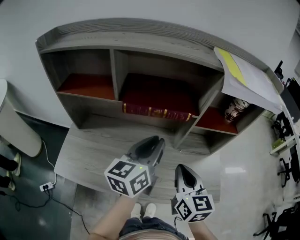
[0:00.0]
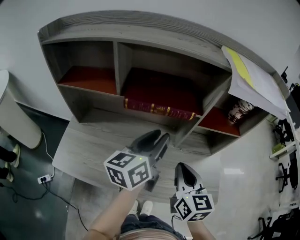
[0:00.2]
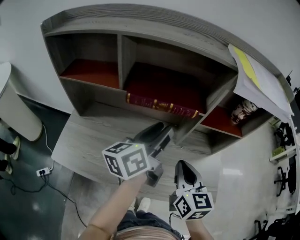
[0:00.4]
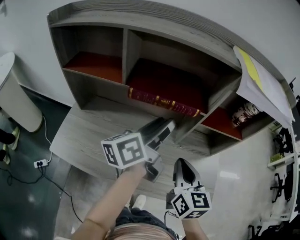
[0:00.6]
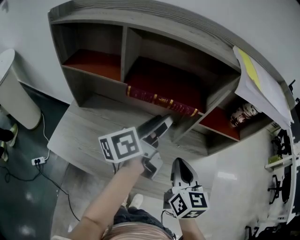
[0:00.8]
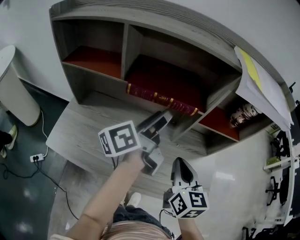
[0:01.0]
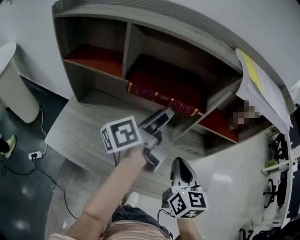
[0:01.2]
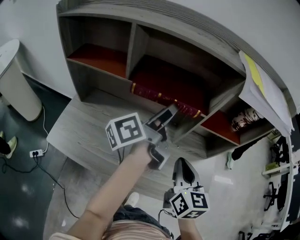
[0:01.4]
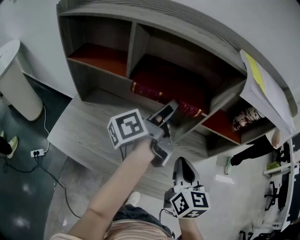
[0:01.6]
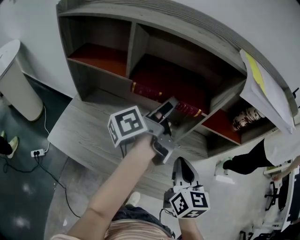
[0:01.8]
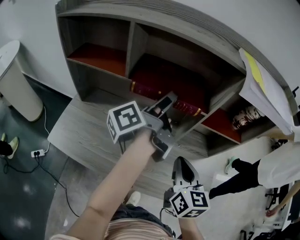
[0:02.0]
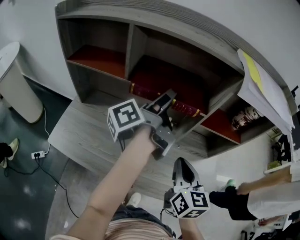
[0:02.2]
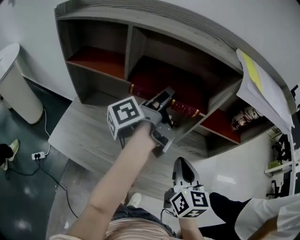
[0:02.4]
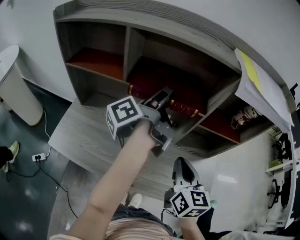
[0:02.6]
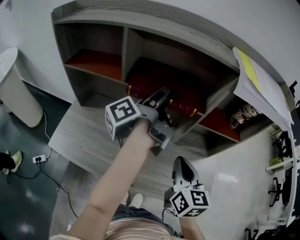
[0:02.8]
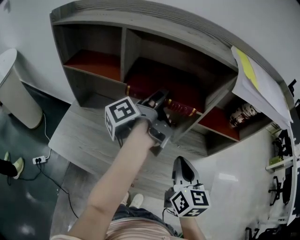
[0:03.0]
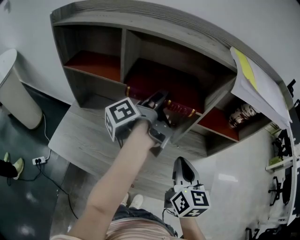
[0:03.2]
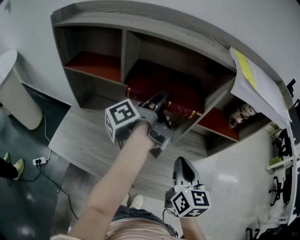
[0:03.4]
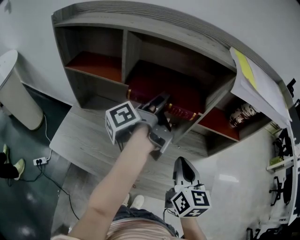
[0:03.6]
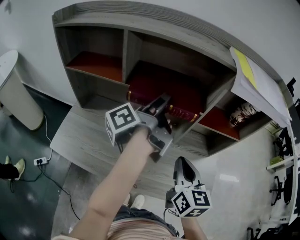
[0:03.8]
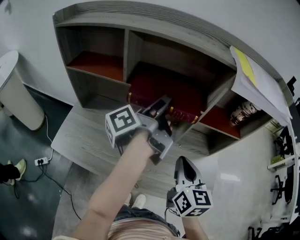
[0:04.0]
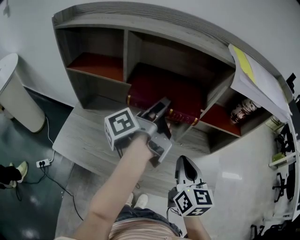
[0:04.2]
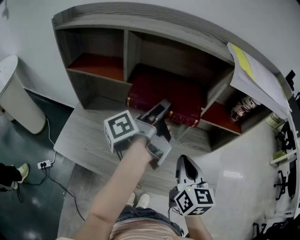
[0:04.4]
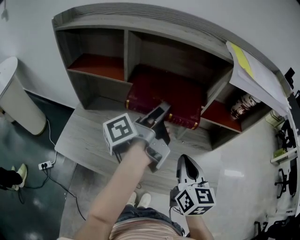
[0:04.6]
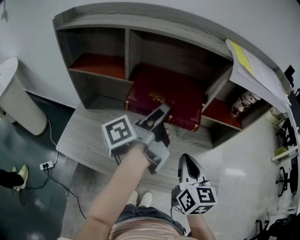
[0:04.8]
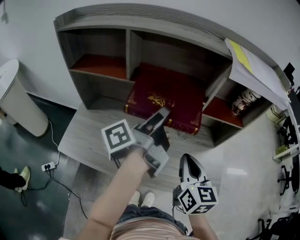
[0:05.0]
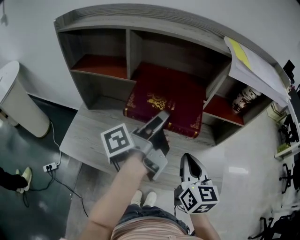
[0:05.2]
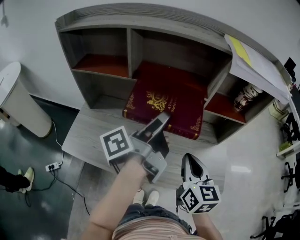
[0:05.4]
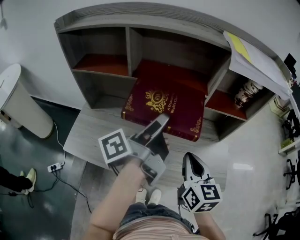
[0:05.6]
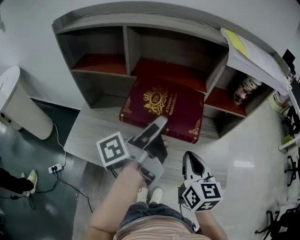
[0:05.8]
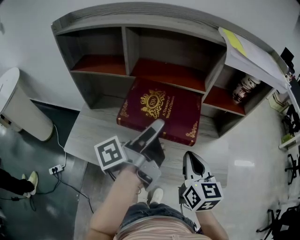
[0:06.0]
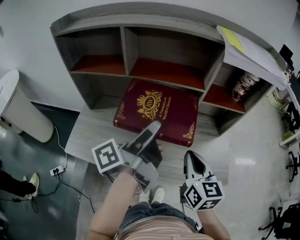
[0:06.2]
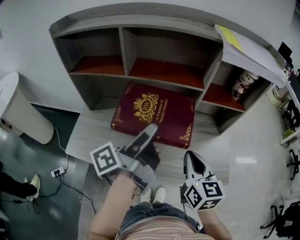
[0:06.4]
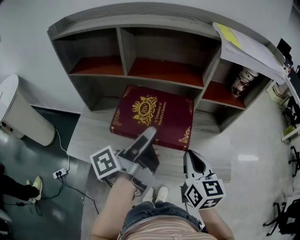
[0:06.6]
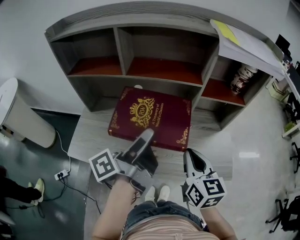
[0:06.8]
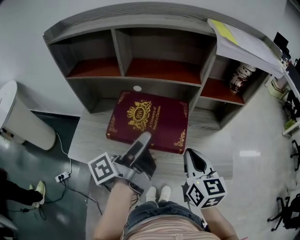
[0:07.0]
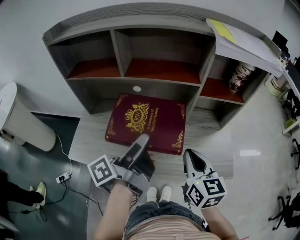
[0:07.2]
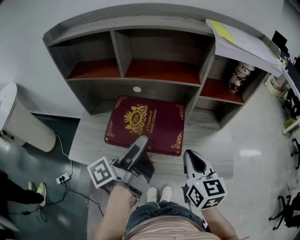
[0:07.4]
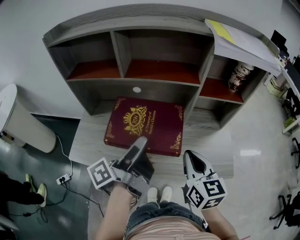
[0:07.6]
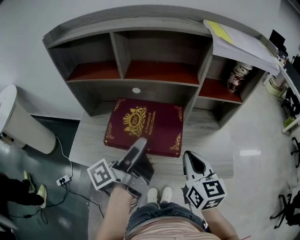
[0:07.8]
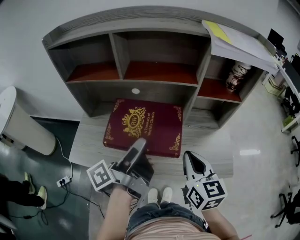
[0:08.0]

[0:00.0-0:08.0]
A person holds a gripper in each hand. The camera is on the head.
0:00.0 to 0:01.6: The left gripper heads forward, covering about 10 cm, rotates around the line of its fingers by some 50 degrees, counterclockwise from behind, and opens.
0:01.6 to 0:03.2: The grippers stay close to where they were, moving slightly.
0:03.2 to 0:04.8: The left gripper heads backward, covering approximately 10 cm.
0:04.8 to 0:06.4: The left gripper heads backward, covering about 10 cm.
0:06.4 to 0:08.0: The grippers move only a little.

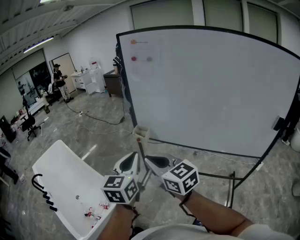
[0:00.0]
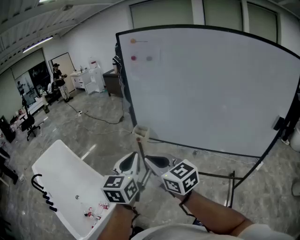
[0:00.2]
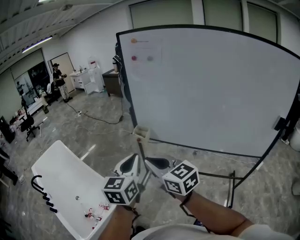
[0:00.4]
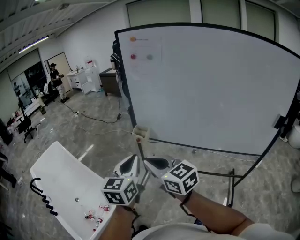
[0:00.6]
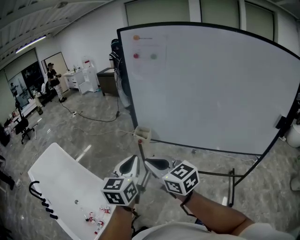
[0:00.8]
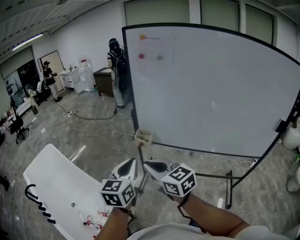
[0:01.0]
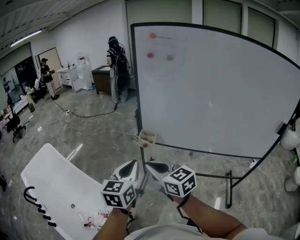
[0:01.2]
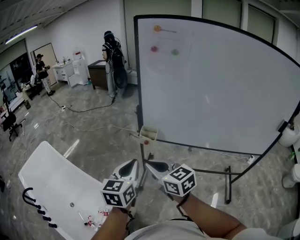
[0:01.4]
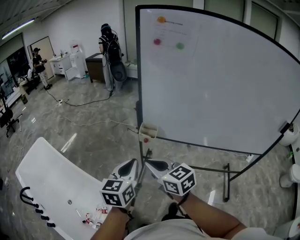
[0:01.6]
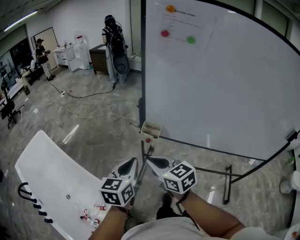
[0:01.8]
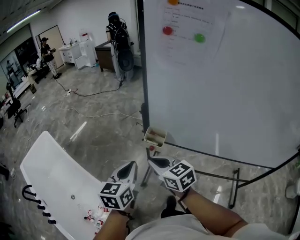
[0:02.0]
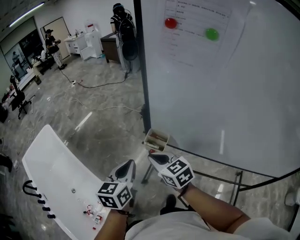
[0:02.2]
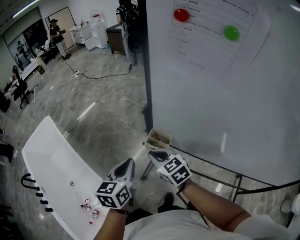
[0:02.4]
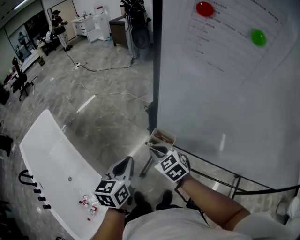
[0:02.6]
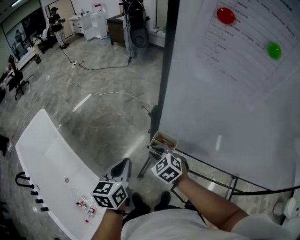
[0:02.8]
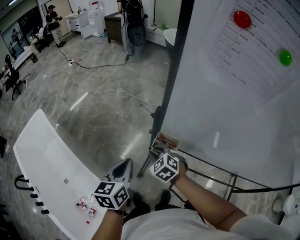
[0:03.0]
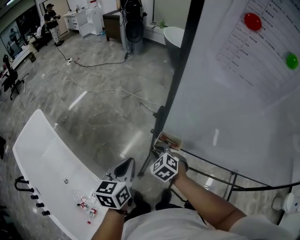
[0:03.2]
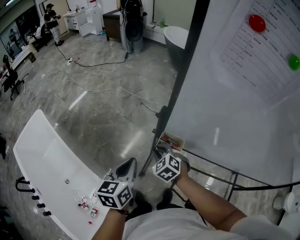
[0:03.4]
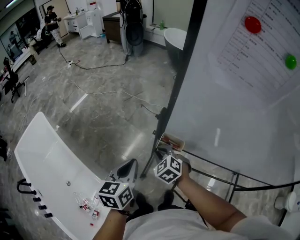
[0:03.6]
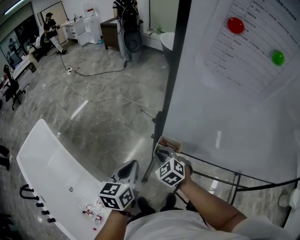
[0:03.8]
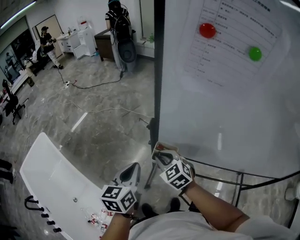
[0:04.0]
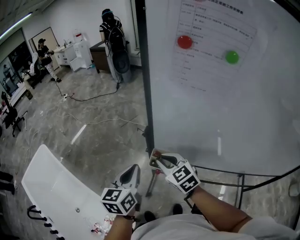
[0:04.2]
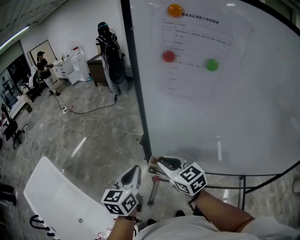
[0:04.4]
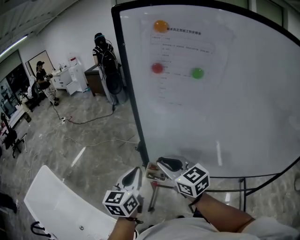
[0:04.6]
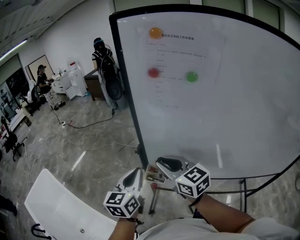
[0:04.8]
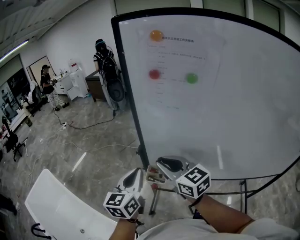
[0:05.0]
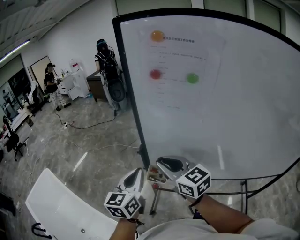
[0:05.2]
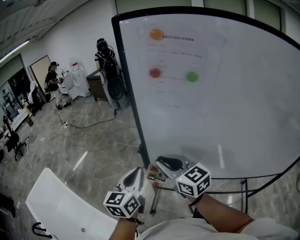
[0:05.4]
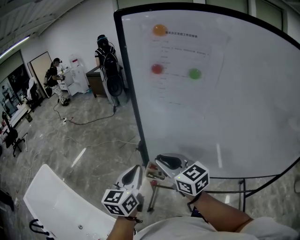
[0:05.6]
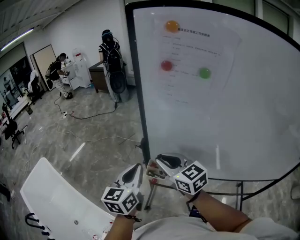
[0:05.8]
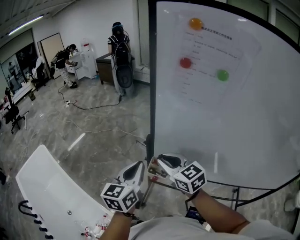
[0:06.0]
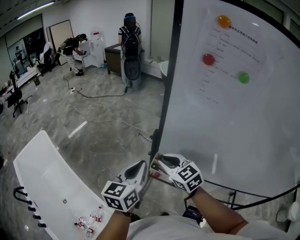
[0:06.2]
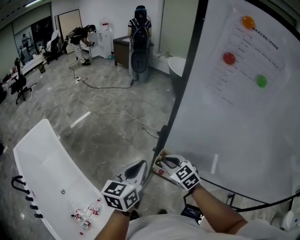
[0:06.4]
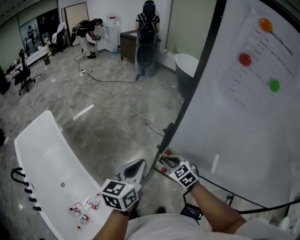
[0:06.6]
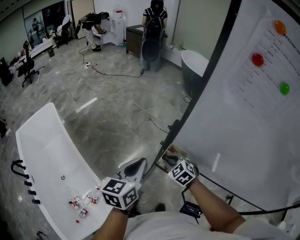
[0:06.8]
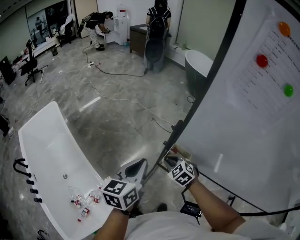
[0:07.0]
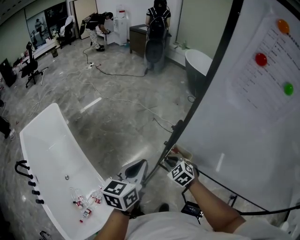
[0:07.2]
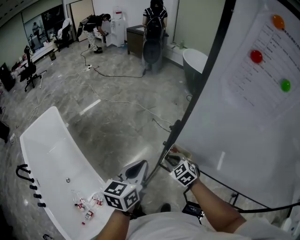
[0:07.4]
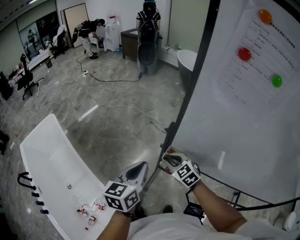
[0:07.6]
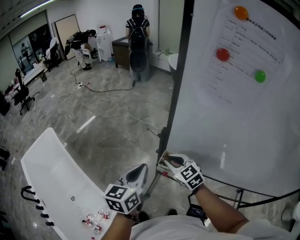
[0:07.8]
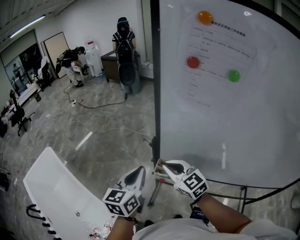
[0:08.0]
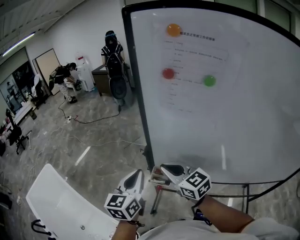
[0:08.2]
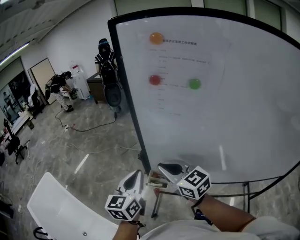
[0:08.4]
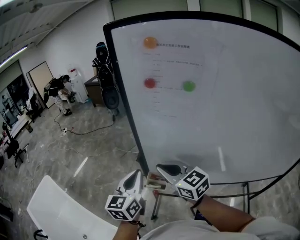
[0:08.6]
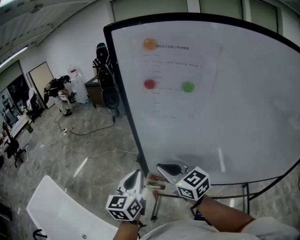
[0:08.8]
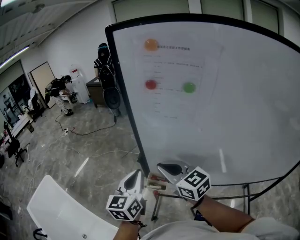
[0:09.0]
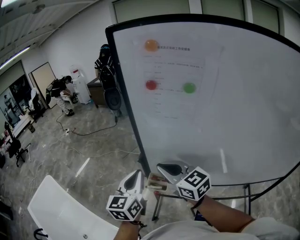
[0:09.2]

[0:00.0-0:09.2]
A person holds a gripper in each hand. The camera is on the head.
0:00.0 to 0:01.6: Both grippers move forward, to the left and downward, about 25 cm.
0:01.6 to 0:03.0: Both grippers move forward and downward, approximately 30 cm. The right gripper points its fingers some 30 degrees further downward.
0:03.0 to 0:04.6: The right gripper moves upward, roughly 25 cm, and tips its fingers upward by roughly 40 degrees, while the left gripper goes roughly 15 cm upward and to the right, and turns by approximately 20 degrees.
0:04.6 to 0:06.2: The right gripper goes approximately 10 cm downward, and rotates about 20 degrees.
0:06.2 to 0:07.6: The right gripper shifts roughly 15 cm downward. The left gripper changes place by approximately 5 cm.
0:07.6 to 0:09.2: The left gripper moves upward and to the right, some 15 cm, while the right gripper shifts approximately 25 cm upward, and points its fingers about 30 degrees further upward.

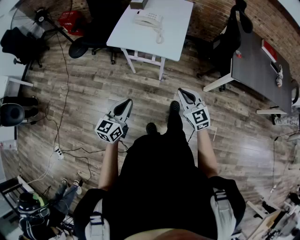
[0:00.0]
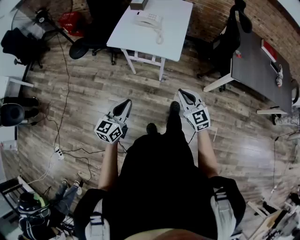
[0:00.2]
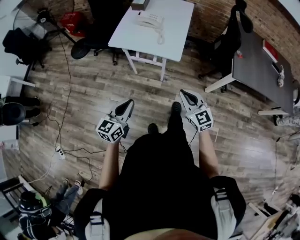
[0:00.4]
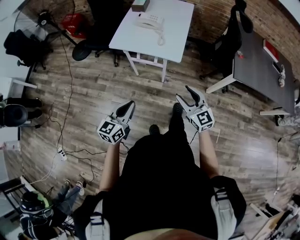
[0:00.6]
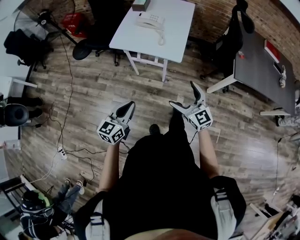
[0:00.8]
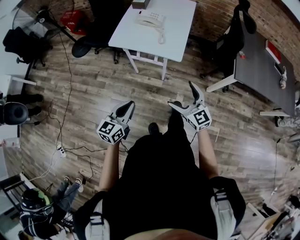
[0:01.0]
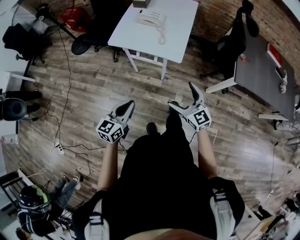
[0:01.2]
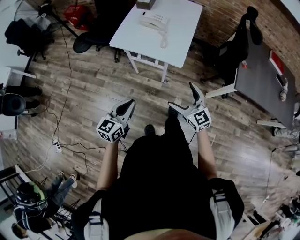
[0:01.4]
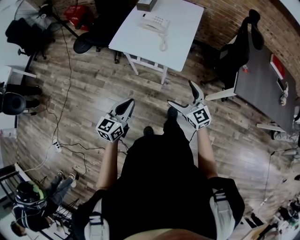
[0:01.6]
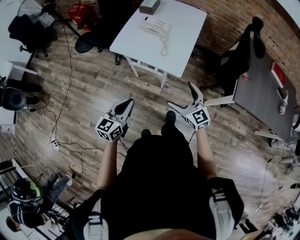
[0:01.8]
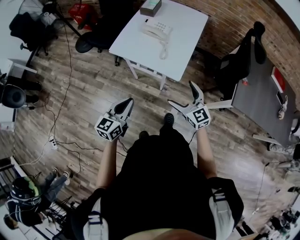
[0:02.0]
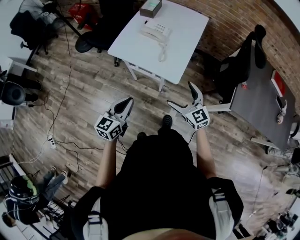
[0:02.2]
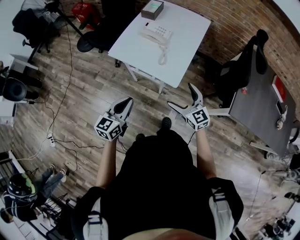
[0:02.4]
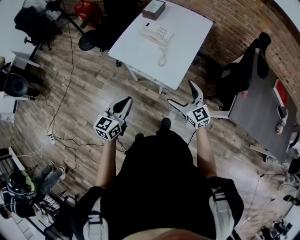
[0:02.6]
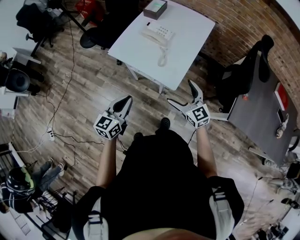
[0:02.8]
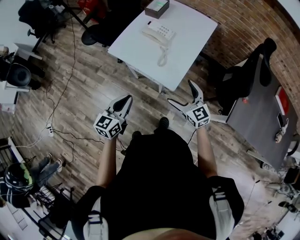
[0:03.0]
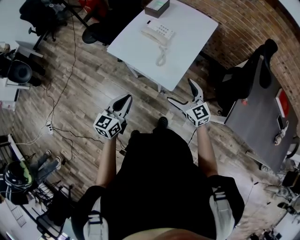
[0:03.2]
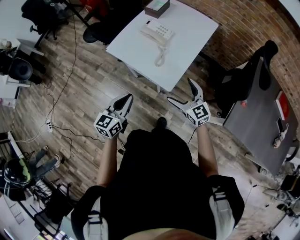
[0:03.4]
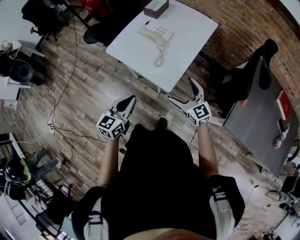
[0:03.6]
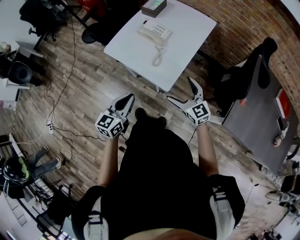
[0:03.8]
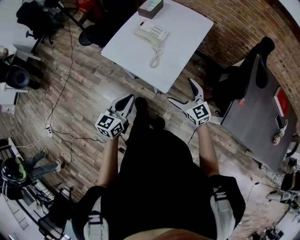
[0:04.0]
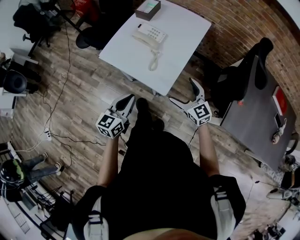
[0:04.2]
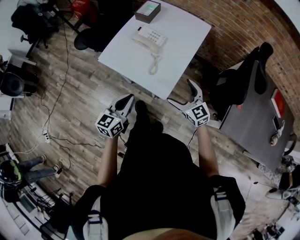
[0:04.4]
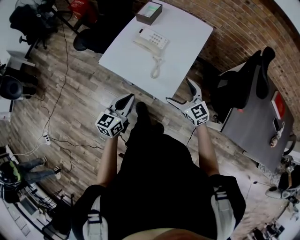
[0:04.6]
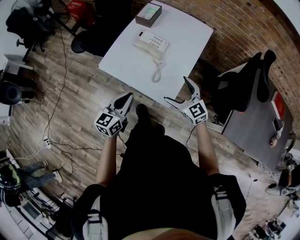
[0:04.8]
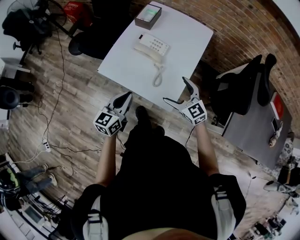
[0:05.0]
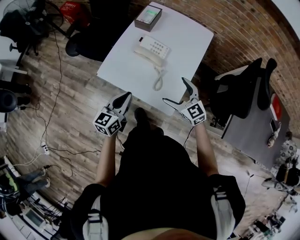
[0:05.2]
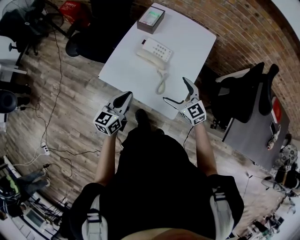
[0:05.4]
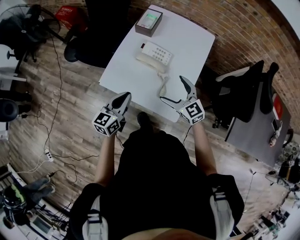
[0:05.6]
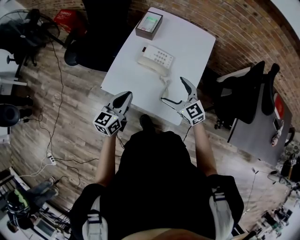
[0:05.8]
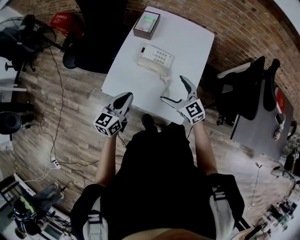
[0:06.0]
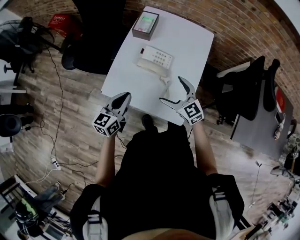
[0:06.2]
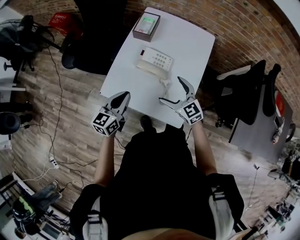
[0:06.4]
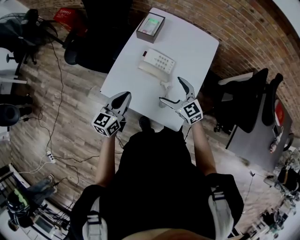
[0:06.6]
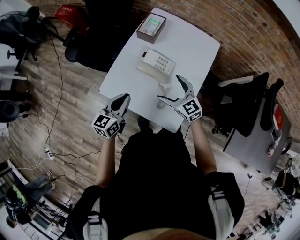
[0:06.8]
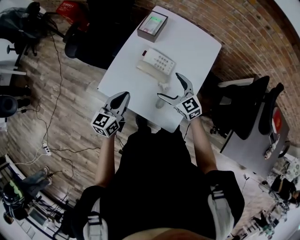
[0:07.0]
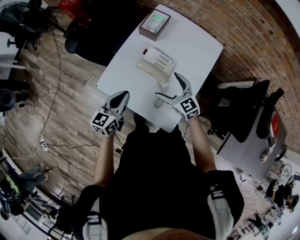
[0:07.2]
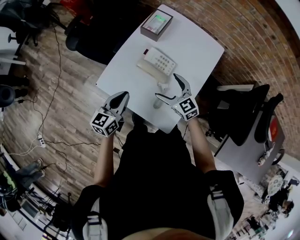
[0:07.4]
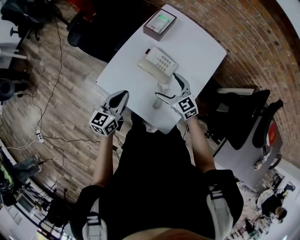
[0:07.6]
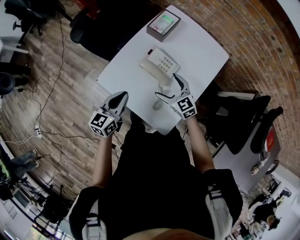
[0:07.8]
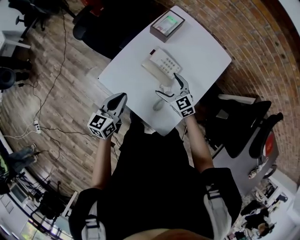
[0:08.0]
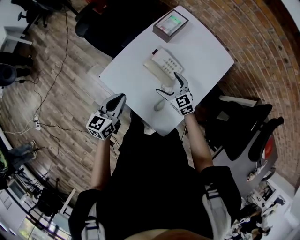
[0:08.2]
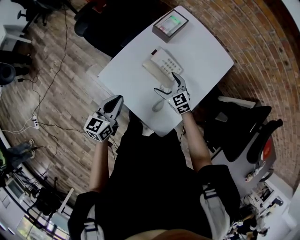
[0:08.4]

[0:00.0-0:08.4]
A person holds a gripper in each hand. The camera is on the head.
0:00.0 to 0:01.4: The left gripper ends up approximately 5 cm from where it was. Meanwhile the right gripper shifts roughly 5 cm forward, and opens.
0:01.4 to 0:02.8: The two grippers go some 20 cm forward and to the right.
0:02.8 to 0:04.2: The right gripper is displaced to the right and forward by some 10 cm. Meanwhile the left gripper moves to the right, roughly 10 cm.
0:04.2 to 0:05.6: Both grippers move forward and to the left, some 25 cm.
0:05.6 to 0:07.0: Both grippers travel together forward, approximately 10 cm.
0:07.0 to 0:08.4: The right gripper heads downward and forward, covering approximately 10 cm.
